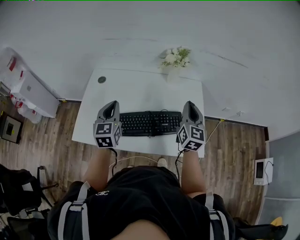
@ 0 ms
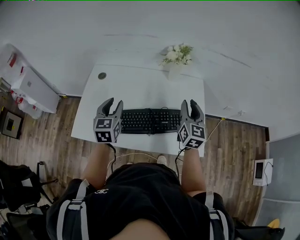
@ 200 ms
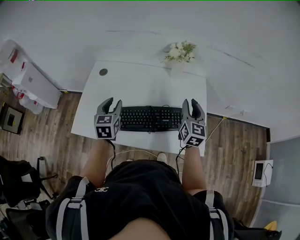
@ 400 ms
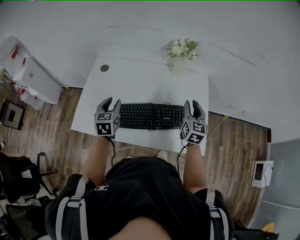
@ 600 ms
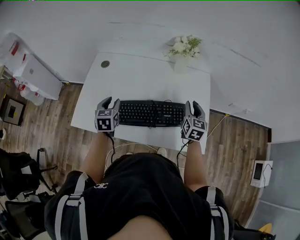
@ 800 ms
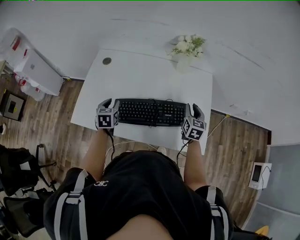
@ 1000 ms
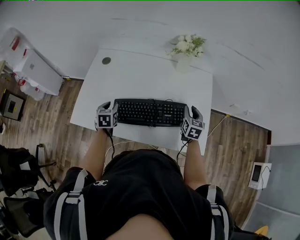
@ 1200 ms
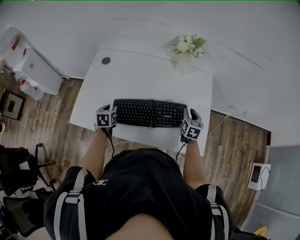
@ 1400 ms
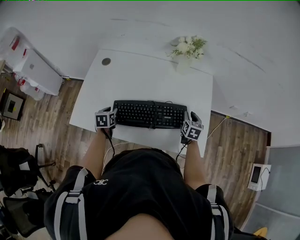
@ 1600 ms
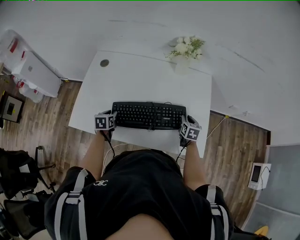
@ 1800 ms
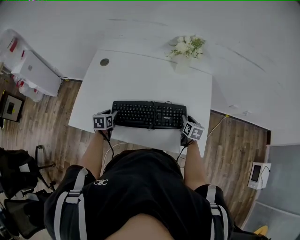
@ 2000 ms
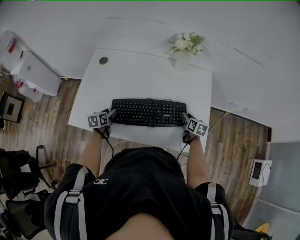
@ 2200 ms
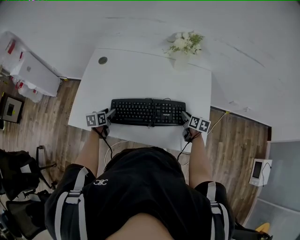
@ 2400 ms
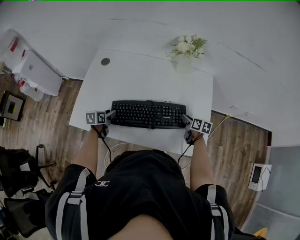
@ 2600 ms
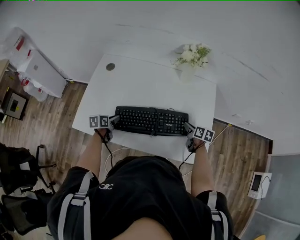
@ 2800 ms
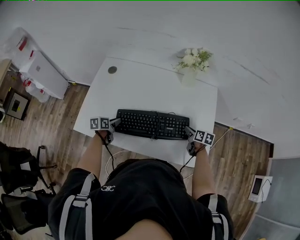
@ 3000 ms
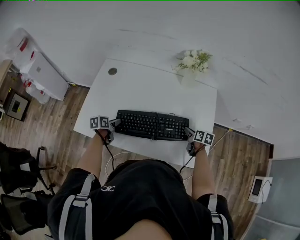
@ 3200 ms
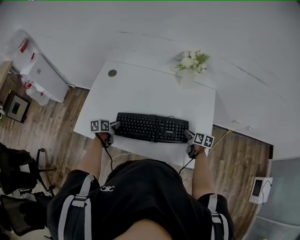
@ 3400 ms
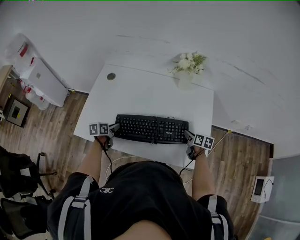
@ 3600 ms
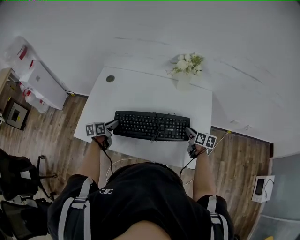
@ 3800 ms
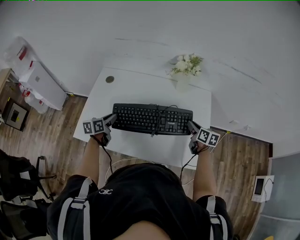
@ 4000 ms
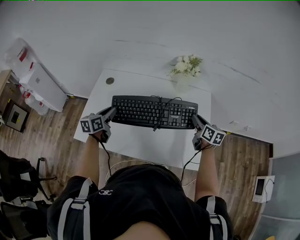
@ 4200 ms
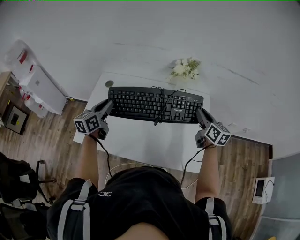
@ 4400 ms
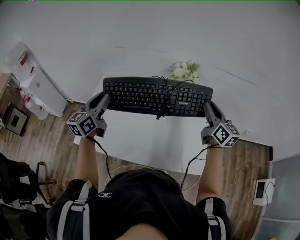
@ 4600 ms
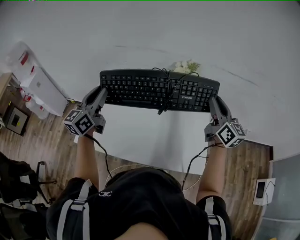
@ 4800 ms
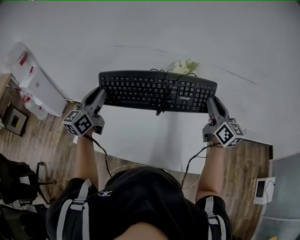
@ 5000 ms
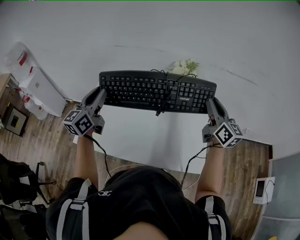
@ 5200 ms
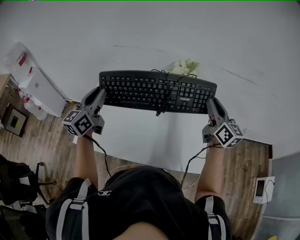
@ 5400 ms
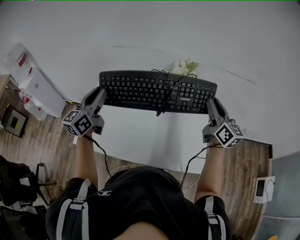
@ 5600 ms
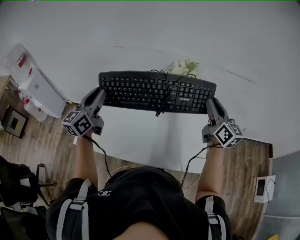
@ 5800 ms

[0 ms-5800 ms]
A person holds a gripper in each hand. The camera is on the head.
0 ms to 1400 ms: Both grippers move downward, approximately 25 cm. The right gripper tilts its fingers approximately 30 degrees downward, and opens up; the left gripper angles its fingers downward, by about 40 degrees, and opens its fingers.
1400 ms to 2800 ms: Both grippers travel together downward, approximately 5 cm. The left gripper rotates some 30 degrees. Meanwhile the right gripper swivels about 40 degrees.
2800 ms to 4400 ms: The grippers both shift upward by roughly 25 cm. The left gripper points its fingers approximately 30 degrees further upward. Meanwhile the right gripper swivels roughly 40 degrees.
4400 ms to 5800 ms: The two grippers go some 15 cm upward.

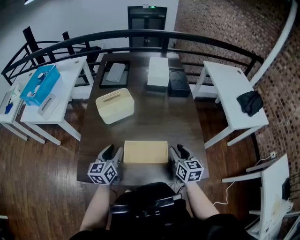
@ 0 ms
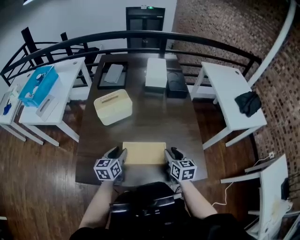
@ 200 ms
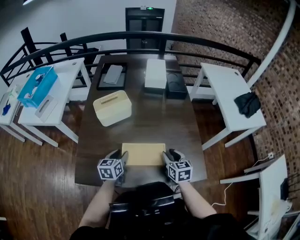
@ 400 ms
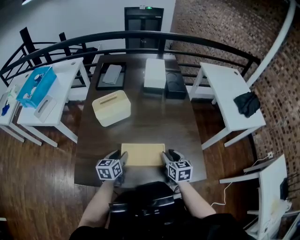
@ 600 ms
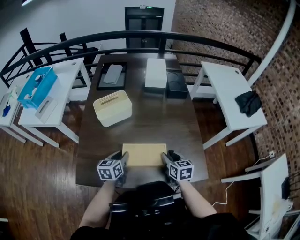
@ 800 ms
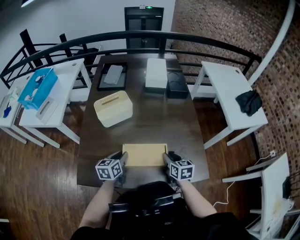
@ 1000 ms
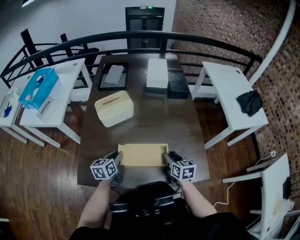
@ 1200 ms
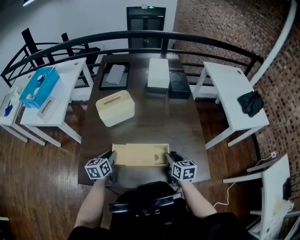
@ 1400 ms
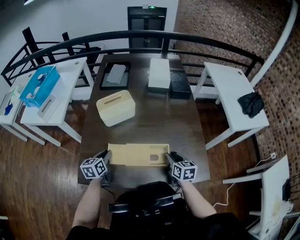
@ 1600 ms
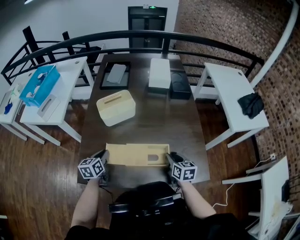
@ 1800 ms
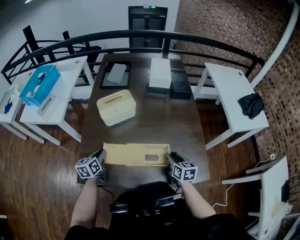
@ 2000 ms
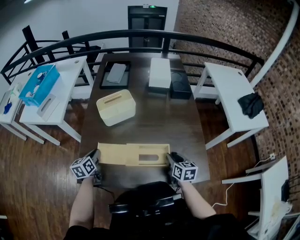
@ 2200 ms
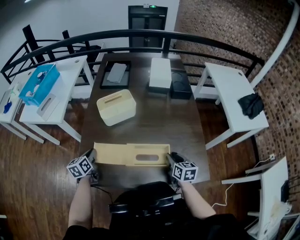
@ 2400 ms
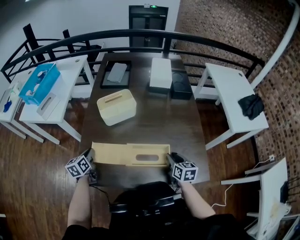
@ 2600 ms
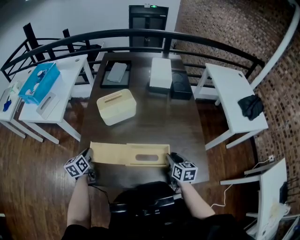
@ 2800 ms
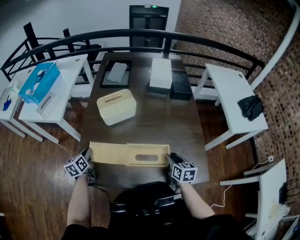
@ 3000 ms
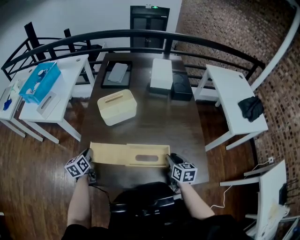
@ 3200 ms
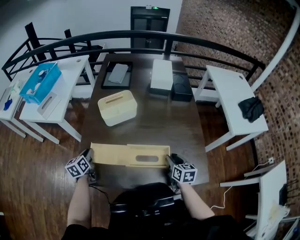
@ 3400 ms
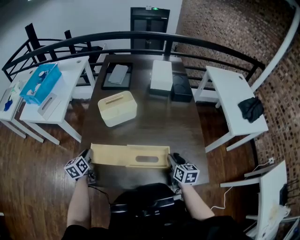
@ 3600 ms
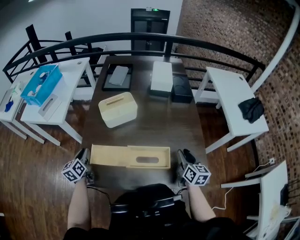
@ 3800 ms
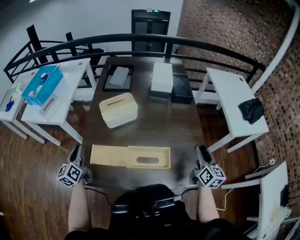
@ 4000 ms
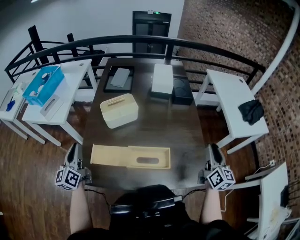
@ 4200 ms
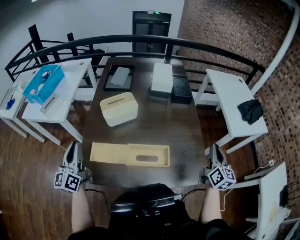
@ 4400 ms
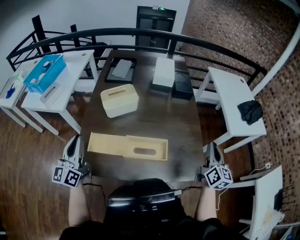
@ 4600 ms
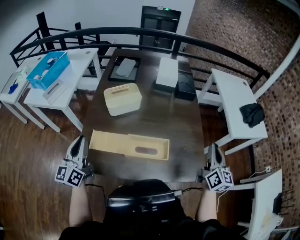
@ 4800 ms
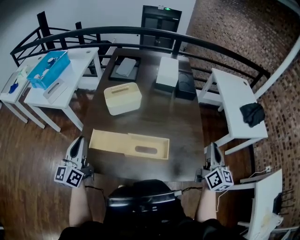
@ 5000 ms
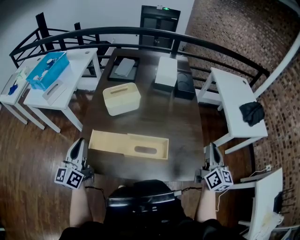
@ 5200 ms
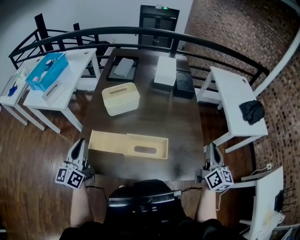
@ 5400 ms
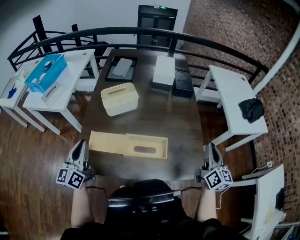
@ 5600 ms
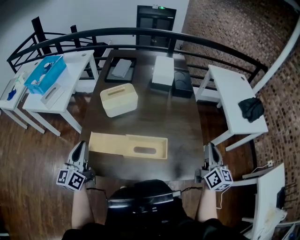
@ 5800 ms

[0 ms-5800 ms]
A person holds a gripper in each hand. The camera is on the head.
0 ms to 1400 ms: Both grippers travel together downward, about 10 cm. The left gripper closes up.
1400 ms to 2800 ms: The left gripper moves to the left, about 15 cm.
2800 ms to 4400 ms: The right gripper goes roughly 25 cm upward and to the right, changes its angle by approximately 40 degrees, and closes; the left gripper travels upward by approximately 20 cm, and angles its fingers upward, by some 40 degrees.
4400 ms to 5800 ms: The left gripper shifts by roughly 5 cm.

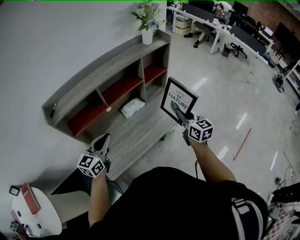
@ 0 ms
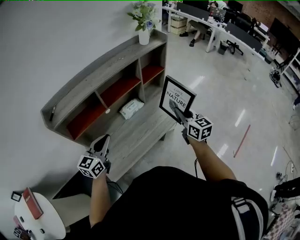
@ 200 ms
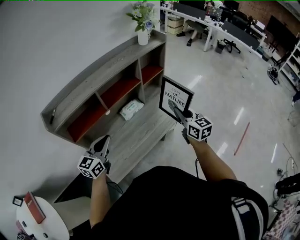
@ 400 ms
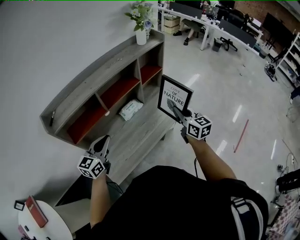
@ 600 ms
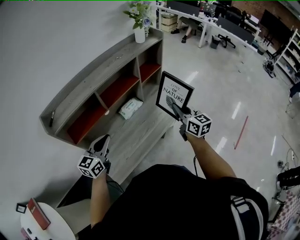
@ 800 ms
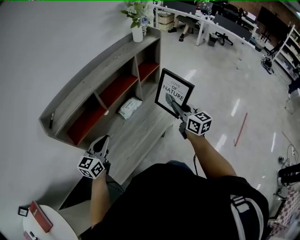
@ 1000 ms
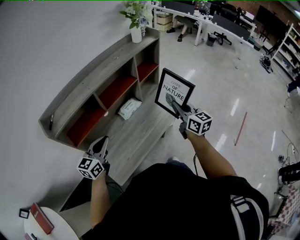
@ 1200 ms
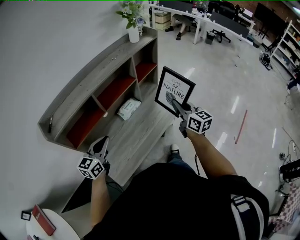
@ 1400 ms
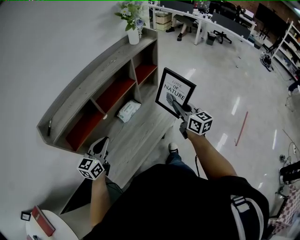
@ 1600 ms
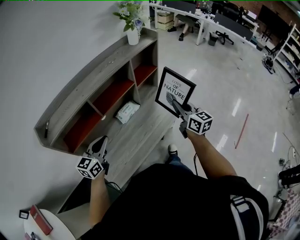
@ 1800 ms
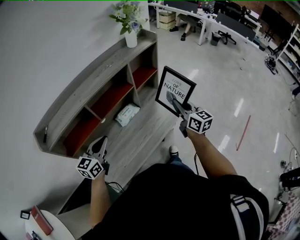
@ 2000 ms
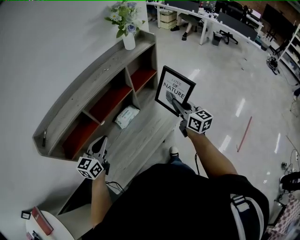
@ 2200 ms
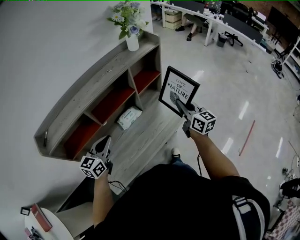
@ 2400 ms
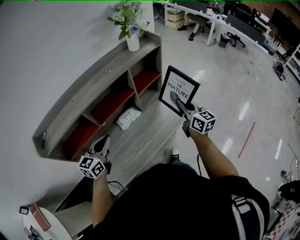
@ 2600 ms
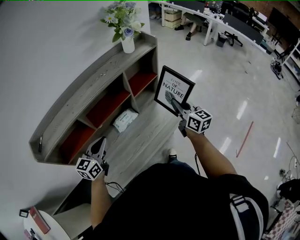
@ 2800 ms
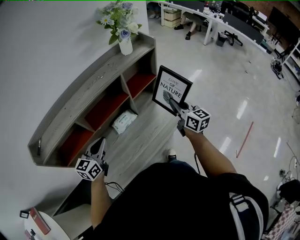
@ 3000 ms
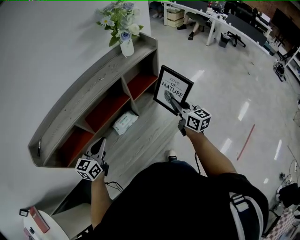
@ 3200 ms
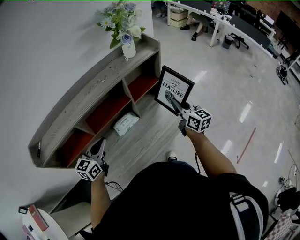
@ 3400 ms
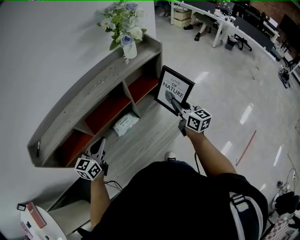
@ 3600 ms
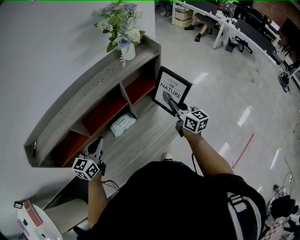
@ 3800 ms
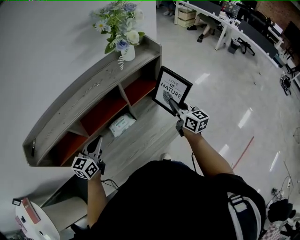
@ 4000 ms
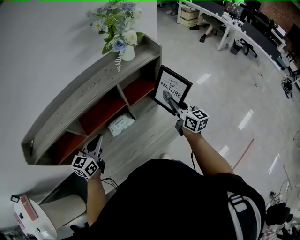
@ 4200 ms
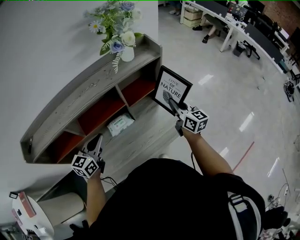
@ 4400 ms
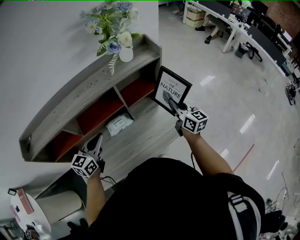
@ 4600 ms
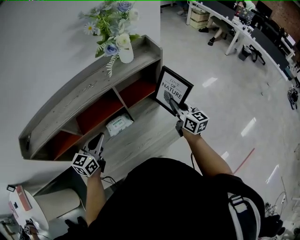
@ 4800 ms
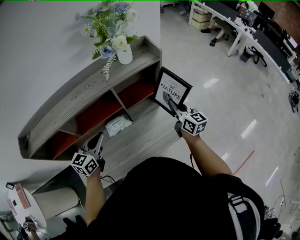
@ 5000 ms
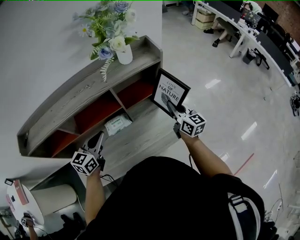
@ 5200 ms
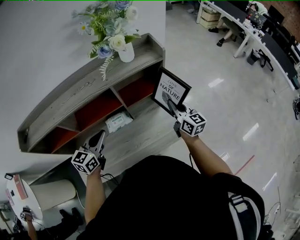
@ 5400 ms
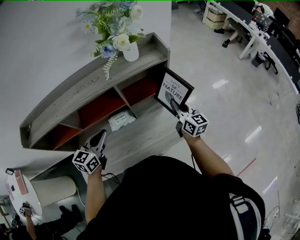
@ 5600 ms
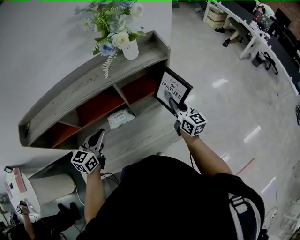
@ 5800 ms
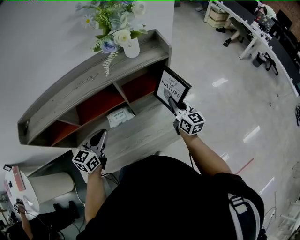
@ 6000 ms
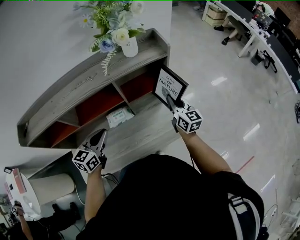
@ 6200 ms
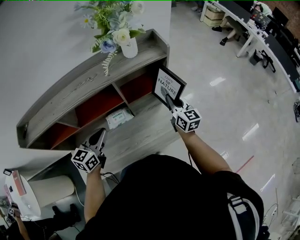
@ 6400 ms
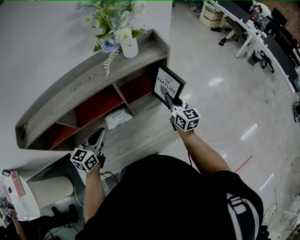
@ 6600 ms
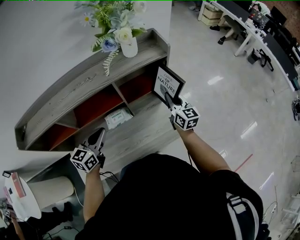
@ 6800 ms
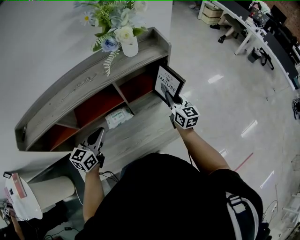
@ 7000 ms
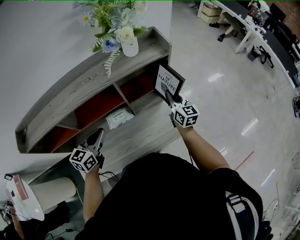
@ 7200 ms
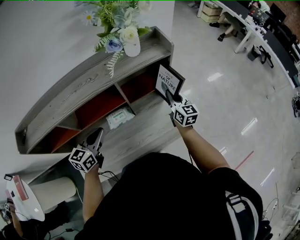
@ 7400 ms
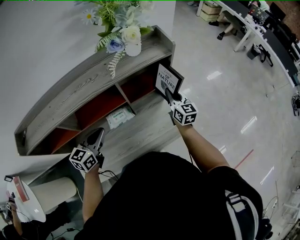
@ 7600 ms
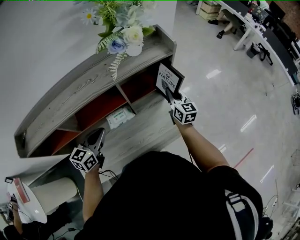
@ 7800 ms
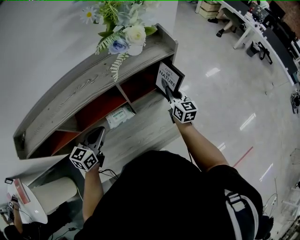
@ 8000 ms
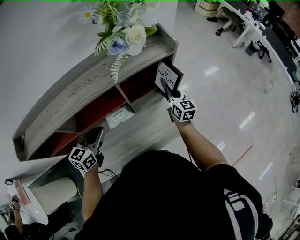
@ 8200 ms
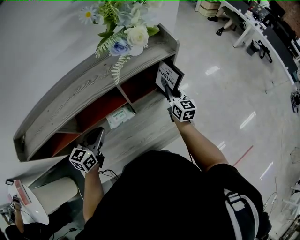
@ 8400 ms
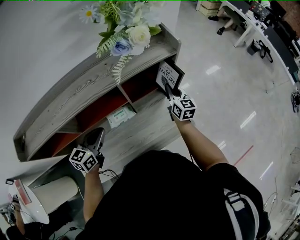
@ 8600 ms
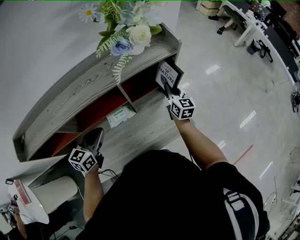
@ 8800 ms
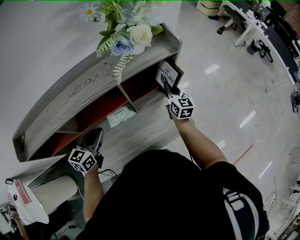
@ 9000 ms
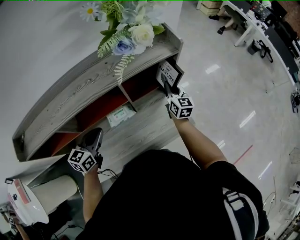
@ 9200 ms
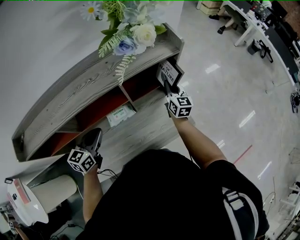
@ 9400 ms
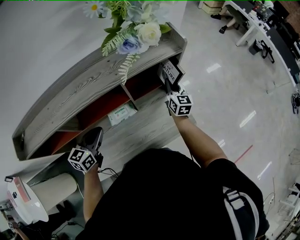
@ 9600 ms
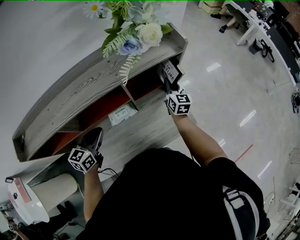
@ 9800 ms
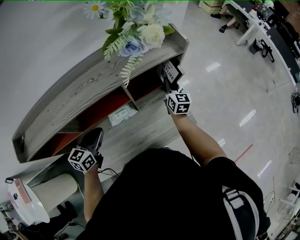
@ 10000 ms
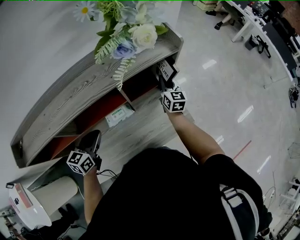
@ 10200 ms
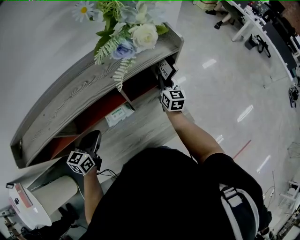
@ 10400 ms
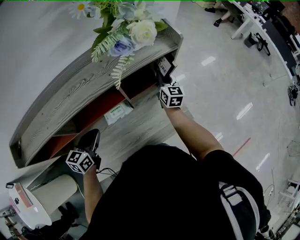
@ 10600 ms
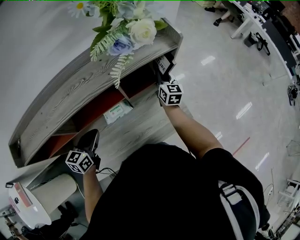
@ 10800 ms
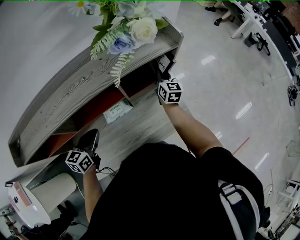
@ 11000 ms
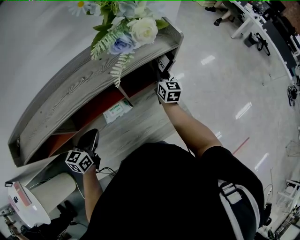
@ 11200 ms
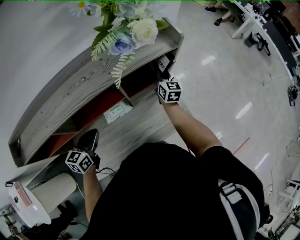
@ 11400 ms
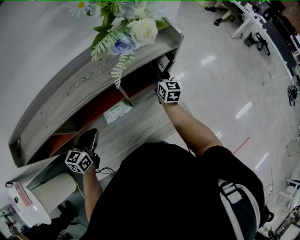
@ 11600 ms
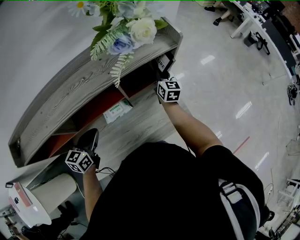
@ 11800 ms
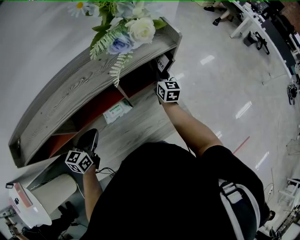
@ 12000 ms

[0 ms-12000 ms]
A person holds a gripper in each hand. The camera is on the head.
0 ms to 1600 ms: There are only small adjustments of the grippers.
1600 ms to 3000 ms: The left gripper shifts approximately 15 cm forward and to the right. Meanwhile the right gripper travels forward by some 15 cm.
3000 ms to 4400 ms: The left gripper goes approximately 10 cm forward and to the right; the right gripper goes roughly 10 cm forward.
4400 ms to 6000 ms: The right gripper moves forward, approximately 5 cm; the left gripper travels to the right by approximately 5 cm.
6000 ms to 7600 ms: The right gripper ends up some 5 cm from where it was.
7600 ms to 9000 ms: The grippers move only a little.
9000 ms to 10400 ms: There are only small adjustments of the grippers.
10400 ms to 12000 ms: There are only small adjustments of the grippers.
